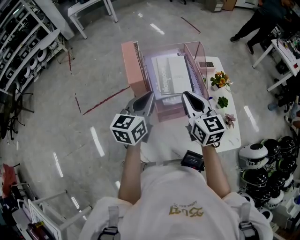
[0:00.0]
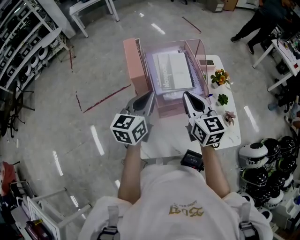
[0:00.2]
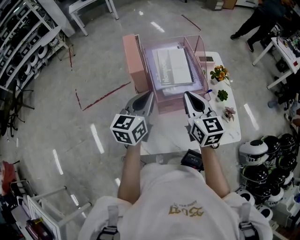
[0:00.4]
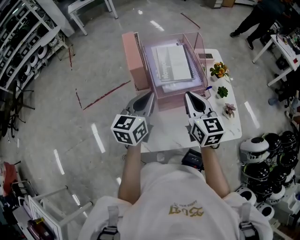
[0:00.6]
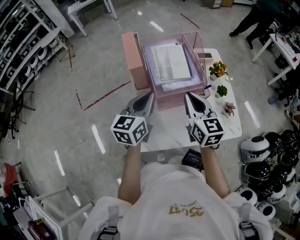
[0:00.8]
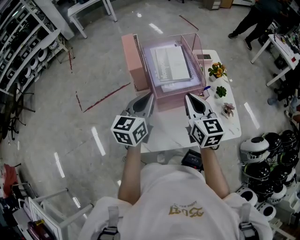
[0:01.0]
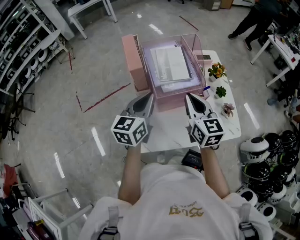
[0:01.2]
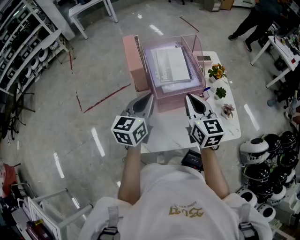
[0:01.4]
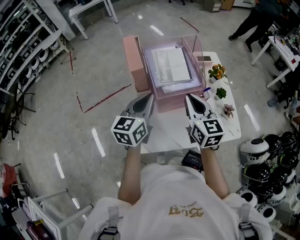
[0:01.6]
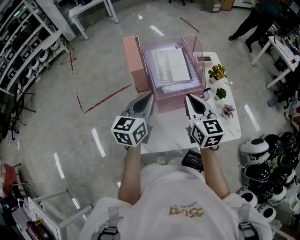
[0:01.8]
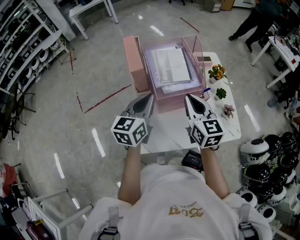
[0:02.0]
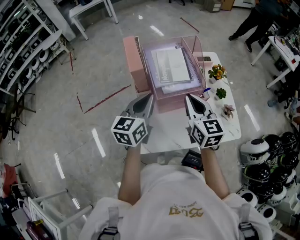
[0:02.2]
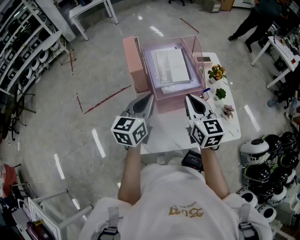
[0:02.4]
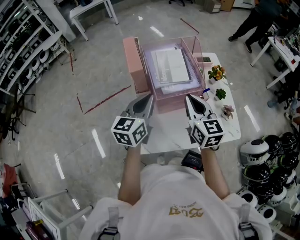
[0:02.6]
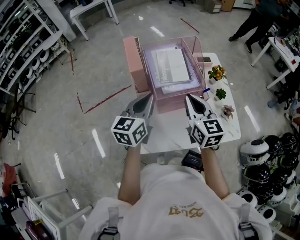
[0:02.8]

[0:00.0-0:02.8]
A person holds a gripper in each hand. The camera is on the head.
0:00.0 to 0:01.4: The two grippers go approximately 5 cm backward.
0:01.4 to 0:02.8: The two grippers keep their place.

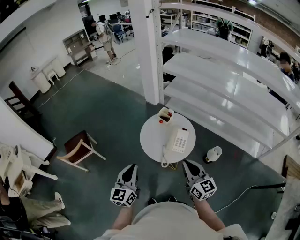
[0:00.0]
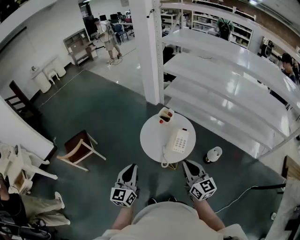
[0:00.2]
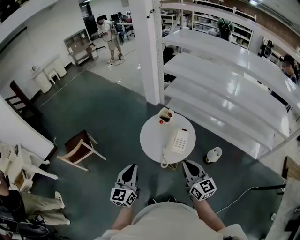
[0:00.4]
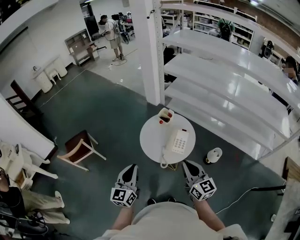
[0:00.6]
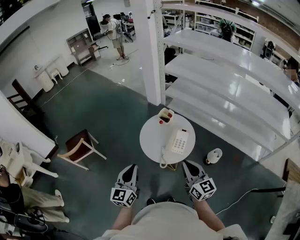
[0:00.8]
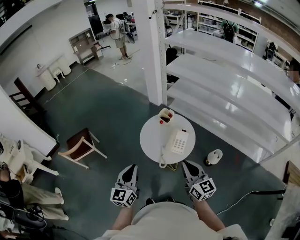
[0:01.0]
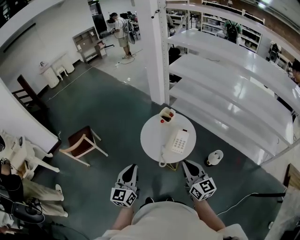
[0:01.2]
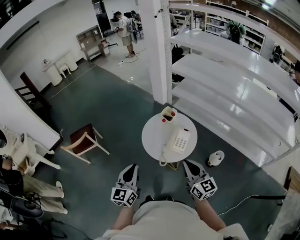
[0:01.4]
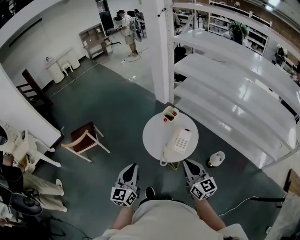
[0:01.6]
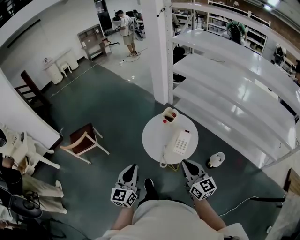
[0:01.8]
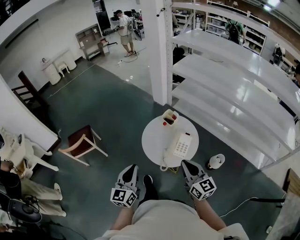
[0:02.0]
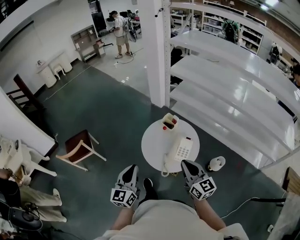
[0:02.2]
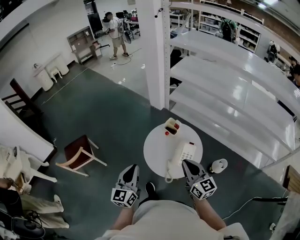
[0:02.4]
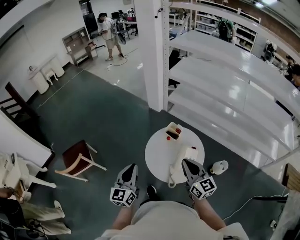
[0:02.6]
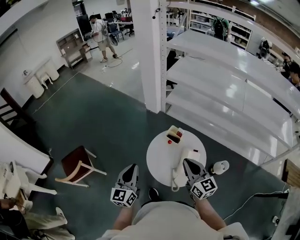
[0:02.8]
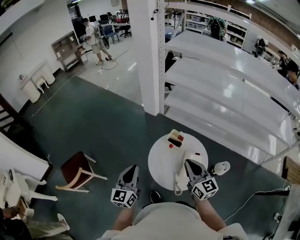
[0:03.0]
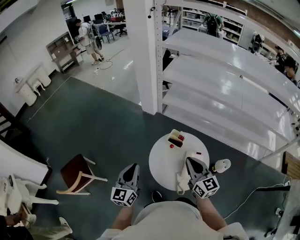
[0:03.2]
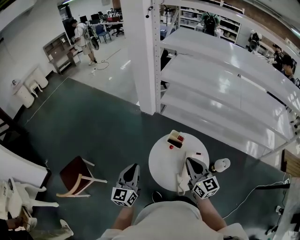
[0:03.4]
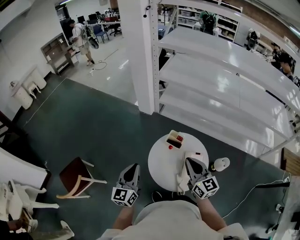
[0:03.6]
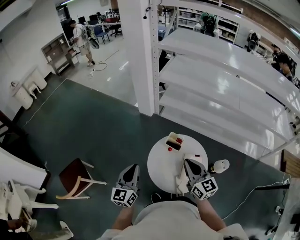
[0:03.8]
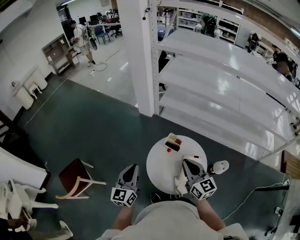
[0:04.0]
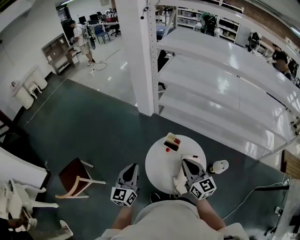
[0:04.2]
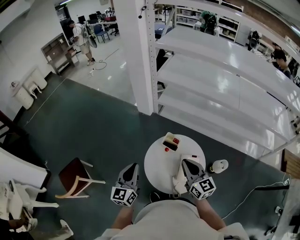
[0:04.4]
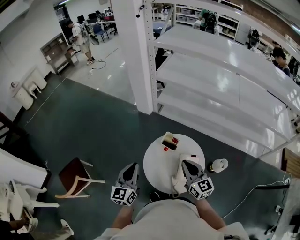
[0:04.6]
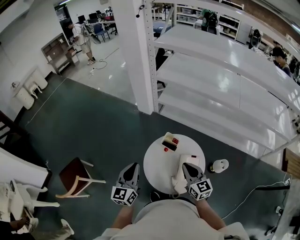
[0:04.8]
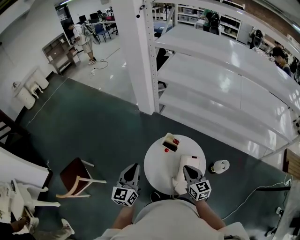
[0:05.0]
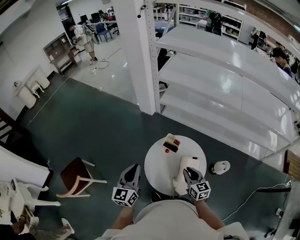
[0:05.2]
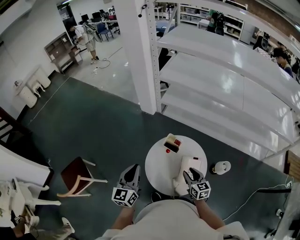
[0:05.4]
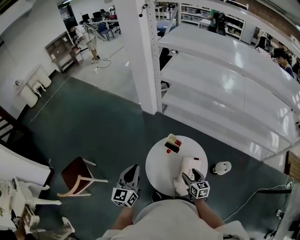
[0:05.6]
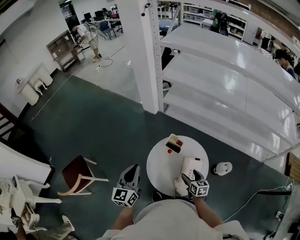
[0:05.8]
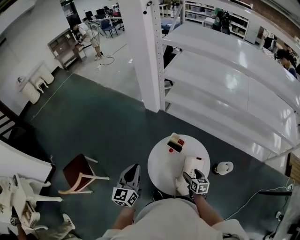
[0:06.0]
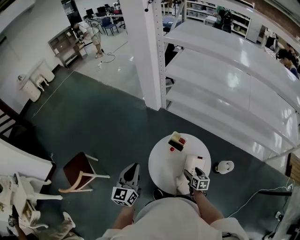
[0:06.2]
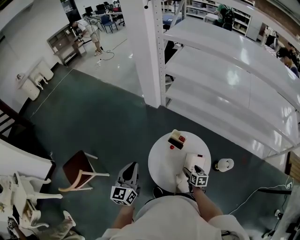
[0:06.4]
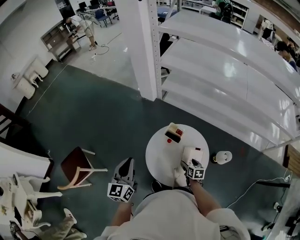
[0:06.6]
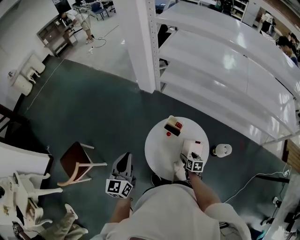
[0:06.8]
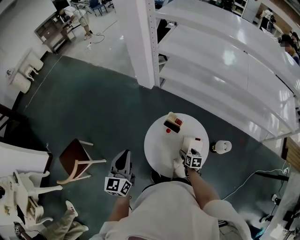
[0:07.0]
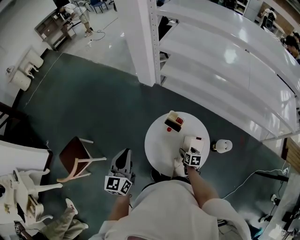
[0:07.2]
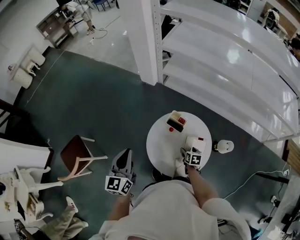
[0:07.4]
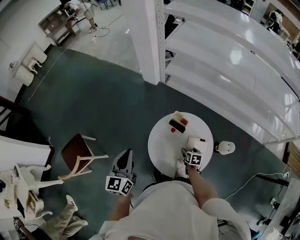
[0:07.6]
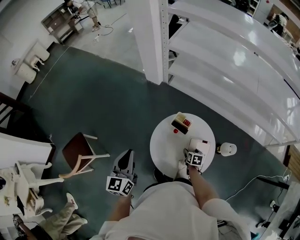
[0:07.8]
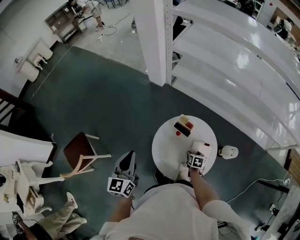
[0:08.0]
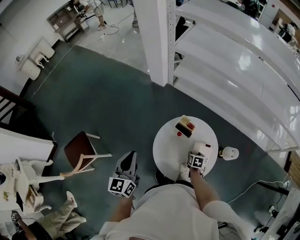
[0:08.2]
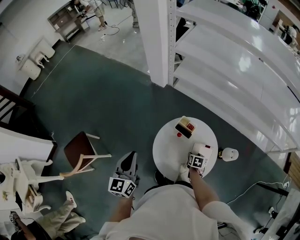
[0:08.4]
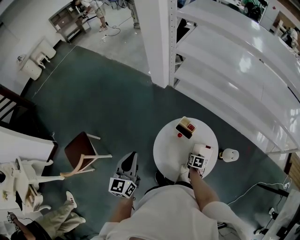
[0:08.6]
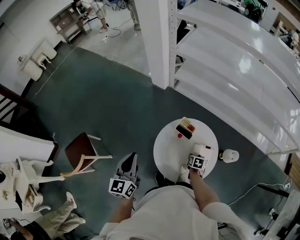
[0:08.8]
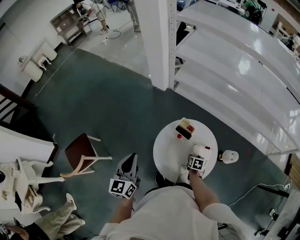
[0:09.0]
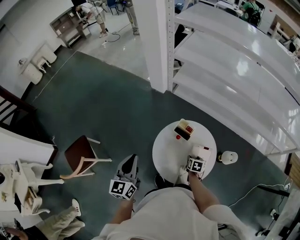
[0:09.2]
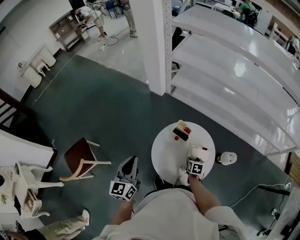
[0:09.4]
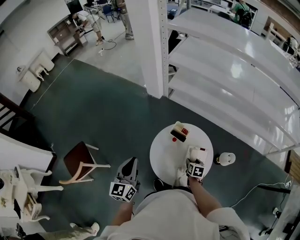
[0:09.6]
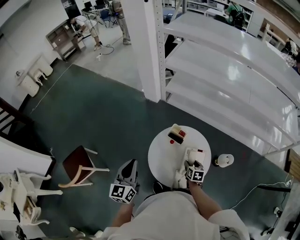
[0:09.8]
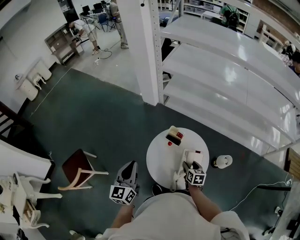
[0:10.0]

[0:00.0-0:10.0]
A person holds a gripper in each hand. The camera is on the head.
0:00.0 to 0:01.4: The grippers stay close to where they were, moving slightly.
0:01.4 to 0:02.8: Both grippers move forward, approximately 25 cm.
0:02.8 to 0:04.2: Both grippers move forward, about 10 cm.
0:04.2 to 0:05.8: The right gripper heads downward, covering approximately 25 cm, tips its fingers downward by approximately 30 degrees, and opens.
0:05.8 to 0:07.2: The right gripper shifts about 10 cm downward, and swivels approximately 20 degrees.
0:07.2 to 0:08.6: The grippers stay close to where they were, moving slightly.
0:08.6 to 0:10.0: The right gripper moves upward, roughly 10 cm, and changes its angle by about 20 degrees.

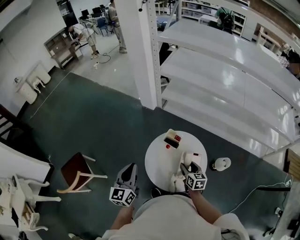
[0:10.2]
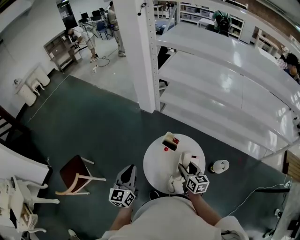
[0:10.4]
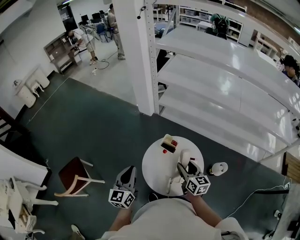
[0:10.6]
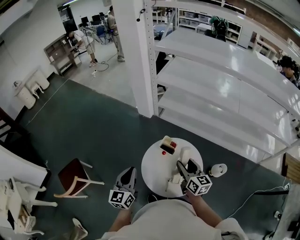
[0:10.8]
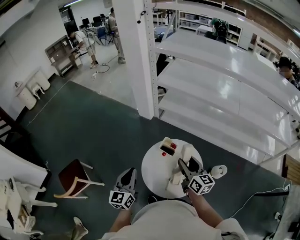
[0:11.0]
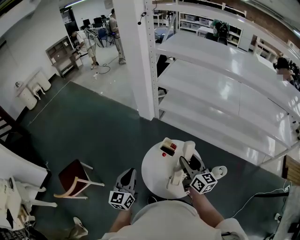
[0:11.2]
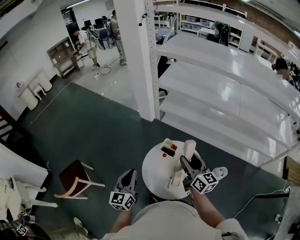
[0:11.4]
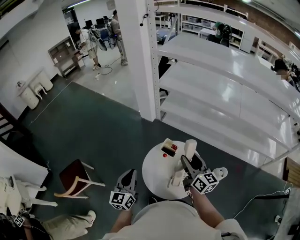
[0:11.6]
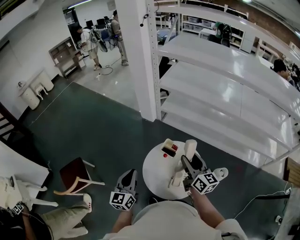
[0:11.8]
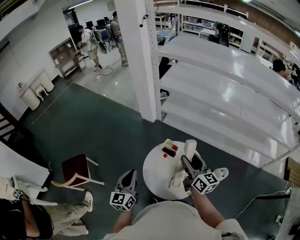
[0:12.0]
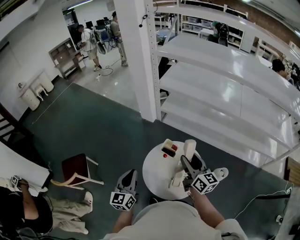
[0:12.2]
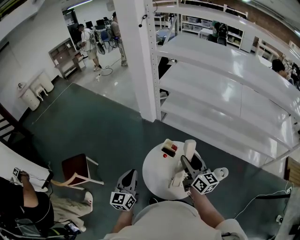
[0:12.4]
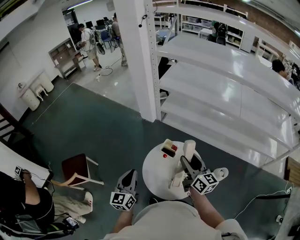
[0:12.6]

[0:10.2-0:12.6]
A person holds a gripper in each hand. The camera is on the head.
0:10.2 to 0:11.4: The right gripper travels upward by approximately 20 cm, and points its fingers roughly 30 degrees further upward.
0:11.4 to 0:12.6: Both grippers stay put.

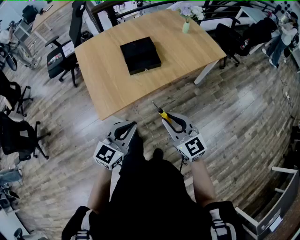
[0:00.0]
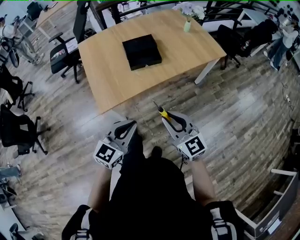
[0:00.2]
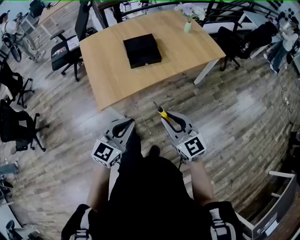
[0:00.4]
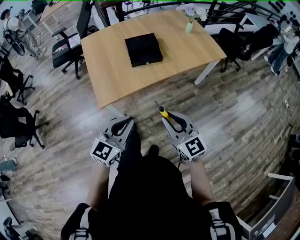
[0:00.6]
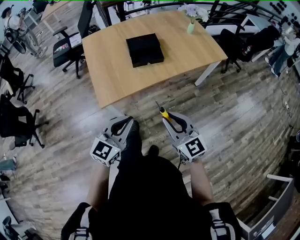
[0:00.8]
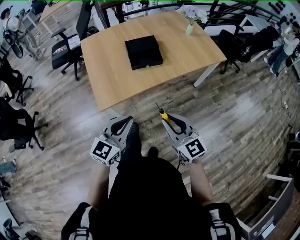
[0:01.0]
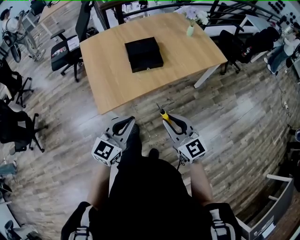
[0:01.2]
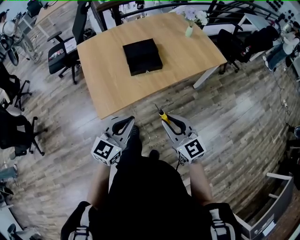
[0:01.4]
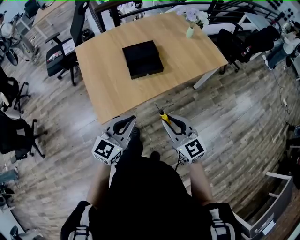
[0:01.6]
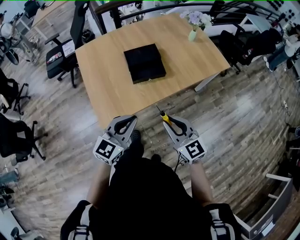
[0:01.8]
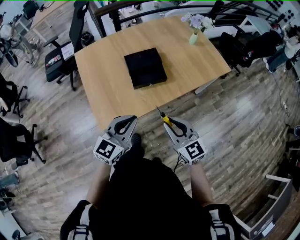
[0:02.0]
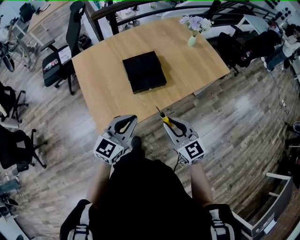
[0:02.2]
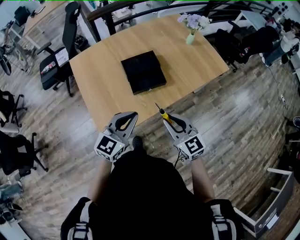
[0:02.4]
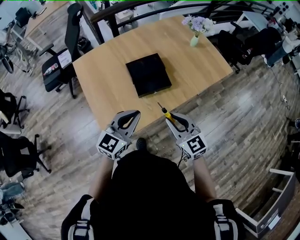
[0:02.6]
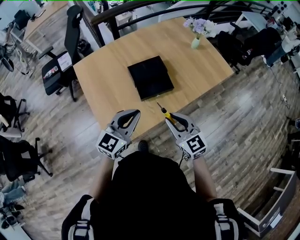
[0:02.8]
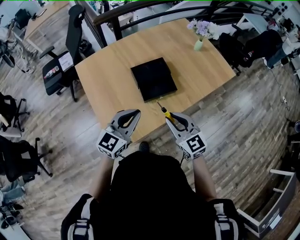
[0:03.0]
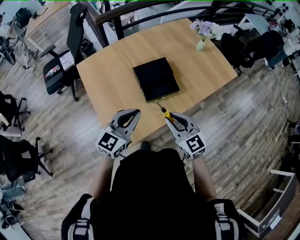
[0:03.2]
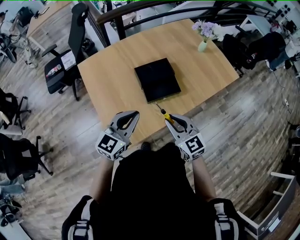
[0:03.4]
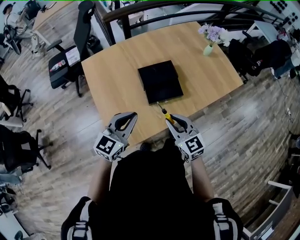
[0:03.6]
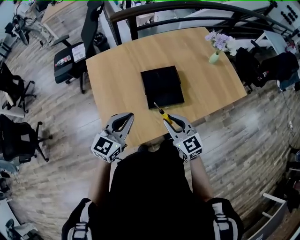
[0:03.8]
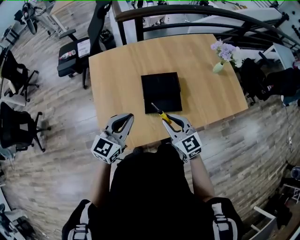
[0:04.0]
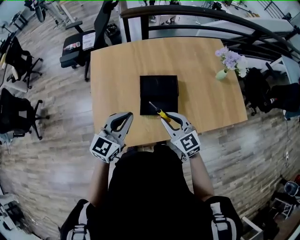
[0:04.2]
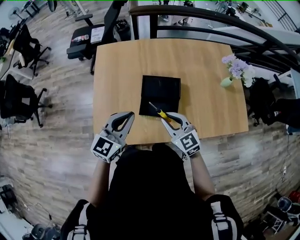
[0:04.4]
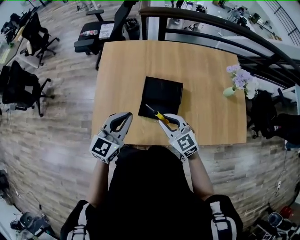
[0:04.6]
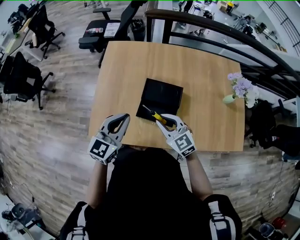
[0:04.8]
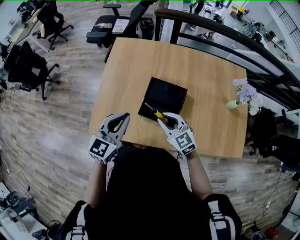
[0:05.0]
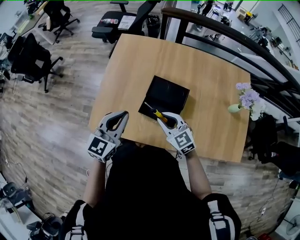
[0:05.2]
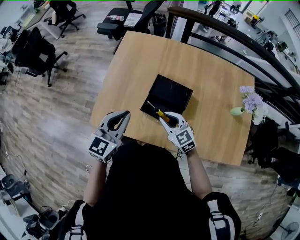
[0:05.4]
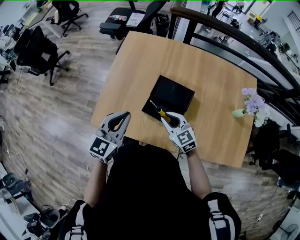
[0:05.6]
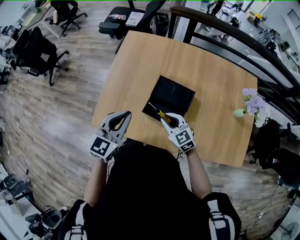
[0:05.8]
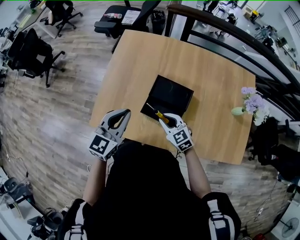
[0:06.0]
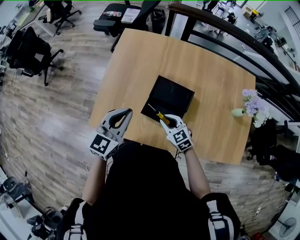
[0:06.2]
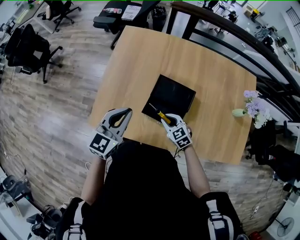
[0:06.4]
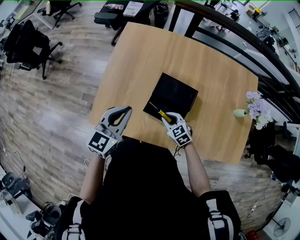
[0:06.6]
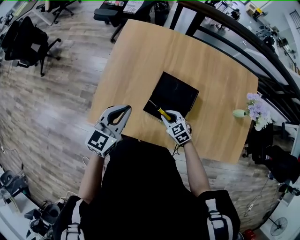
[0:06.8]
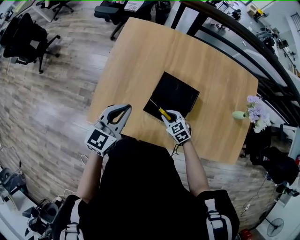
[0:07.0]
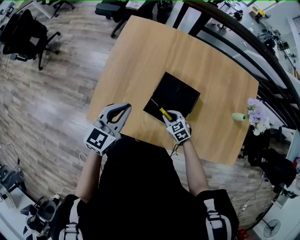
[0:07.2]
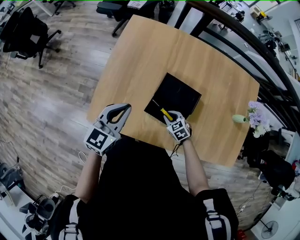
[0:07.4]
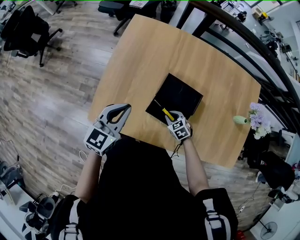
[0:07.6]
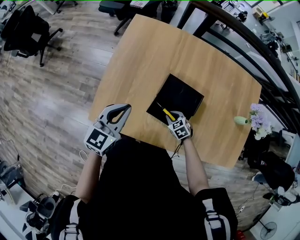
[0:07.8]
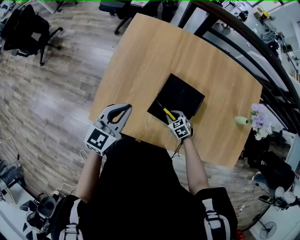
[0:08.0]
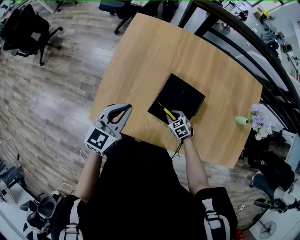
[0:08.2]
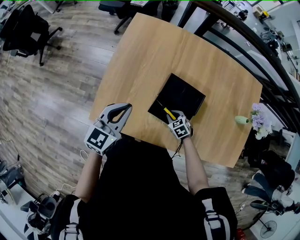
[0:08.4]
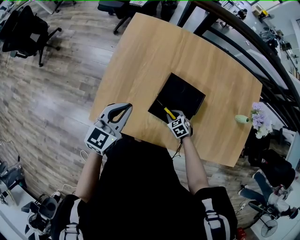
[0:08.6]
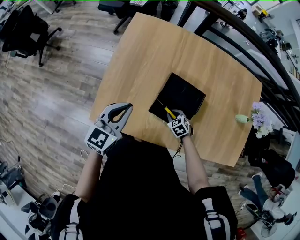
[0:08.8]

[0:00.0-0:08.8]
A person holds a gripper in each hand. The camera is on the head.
0:00.0 to 0:01.4: The left gripper goes backward and returns, about 5 cm each way.
0:01.4 to 0:03.0: The grippers both shift forward and to the left by some 25 cm.
0:03.0 to 0:04.4: The left gripper moves some 10 cm, and changes its angle by about 30 degrees. Meanwhile the right gripper changes place by some 20 cm, and rotates roughly 30 degrees.
0:04.4 to 0:05.8: The left gripper swivels approximately 20 degrees, while the right gripper goes approximately 10 cm downward, and turns by some 20 degrees.
0:05.8 to 0:07.4: The right gripper shifts approximately 15 cm downward, and swivels approximately 30 degrees. Meanwhile the left gripper goes some 5 cm forward.
0:07.4 to 0:08.8: The grippers stay close to where they were, moving slightly.
